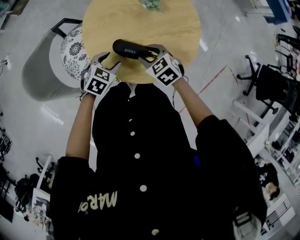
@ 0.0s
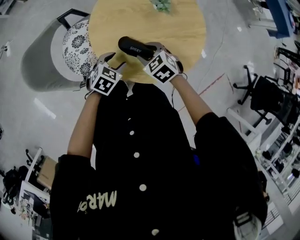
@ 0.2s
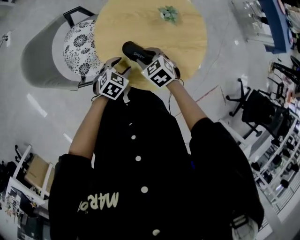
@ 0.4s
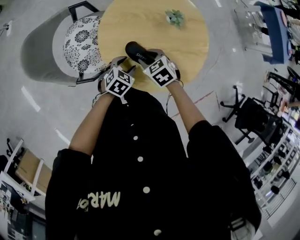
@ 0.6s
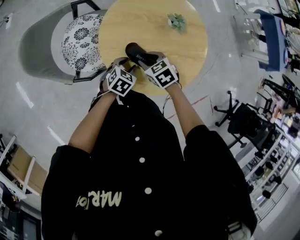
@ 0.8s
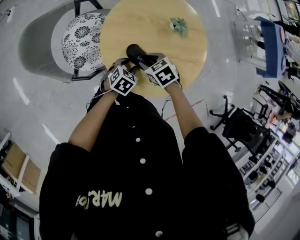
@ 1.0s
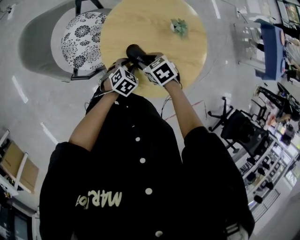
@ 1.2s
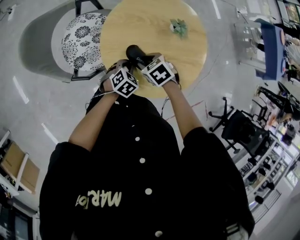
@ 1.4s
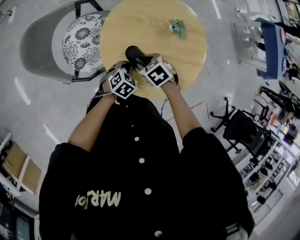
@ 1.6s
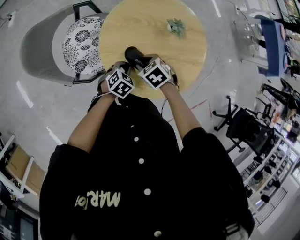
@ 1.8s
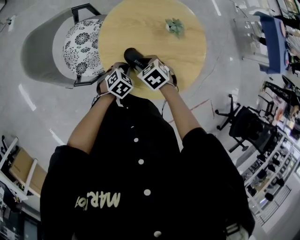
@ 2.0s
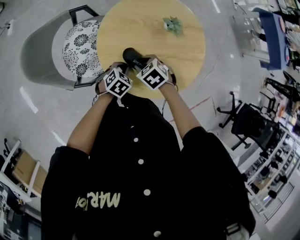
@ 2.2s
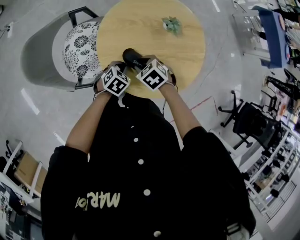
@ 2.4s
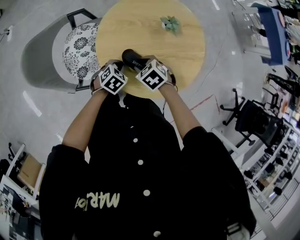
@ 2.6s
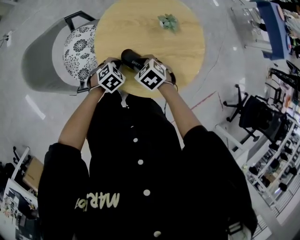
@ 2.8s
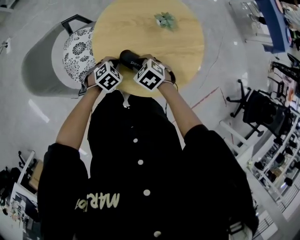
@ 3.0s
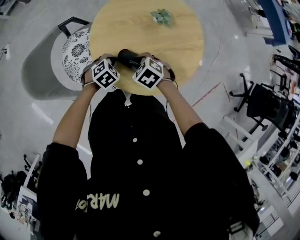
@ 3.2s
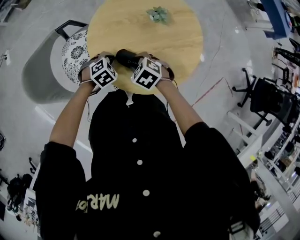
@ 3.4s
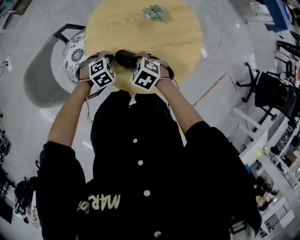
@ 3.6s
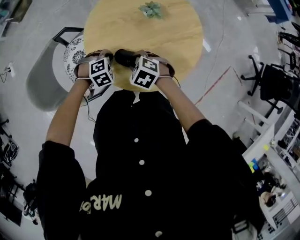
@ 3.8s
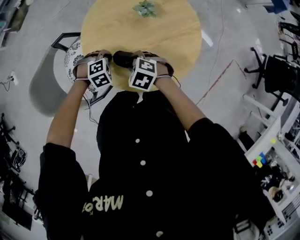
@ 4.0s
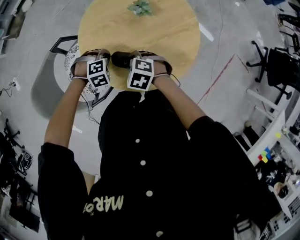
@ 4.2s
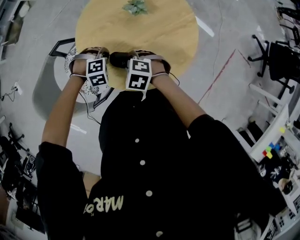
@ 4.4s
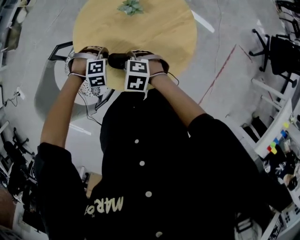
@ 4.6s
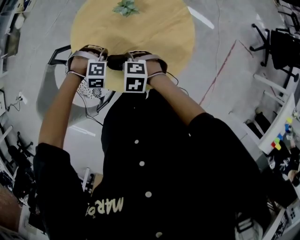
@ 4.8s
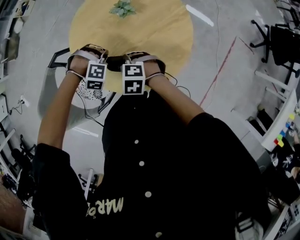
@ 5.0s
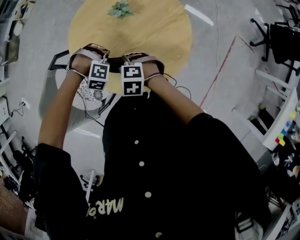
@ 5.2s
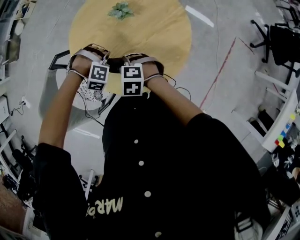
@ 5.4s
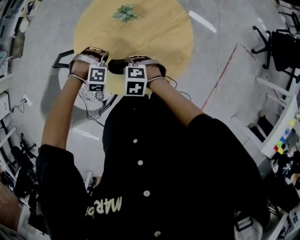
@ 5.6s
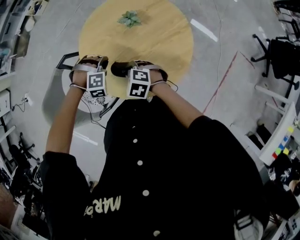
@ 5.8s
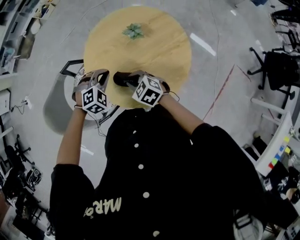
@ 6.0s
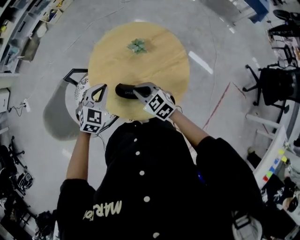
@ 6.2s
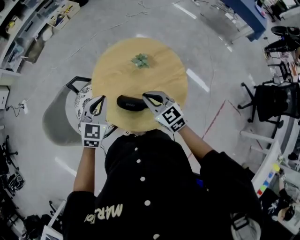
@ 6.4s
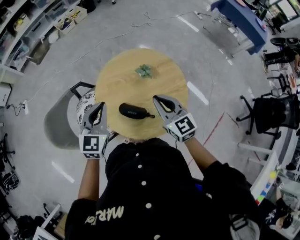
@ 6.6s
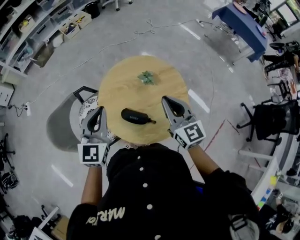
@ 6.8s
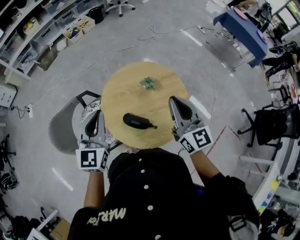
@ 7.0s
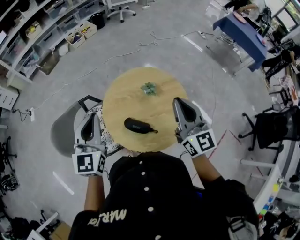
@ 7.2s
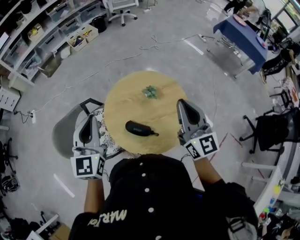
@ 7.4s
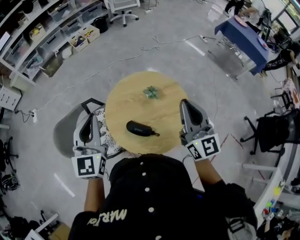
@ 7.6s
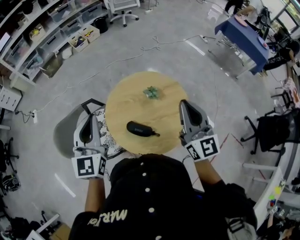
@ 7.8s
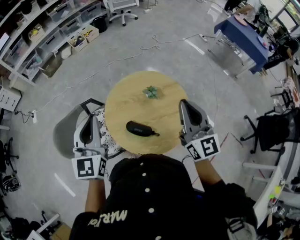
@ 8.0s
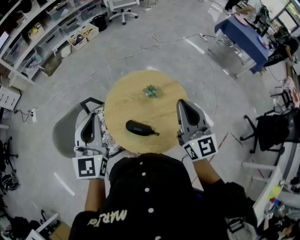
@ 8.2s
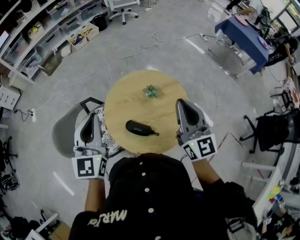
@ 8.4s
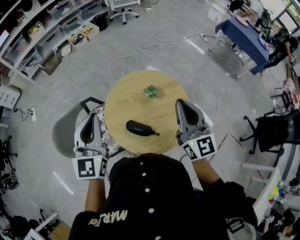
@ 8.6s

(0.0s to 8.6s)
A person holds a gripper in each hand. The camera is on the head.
0.0s - 1.4s: The left gripper heads downward, covering some 5 cm, and closes up. The right gripper ends up approximately 10 cm from where it was, and swivels some 20 degrees.
1.4s - 2.8s: The grippers stay close to where they were, moving slightly.
2.8s - 4.4s: The left gripper ends up some 5 cm from where it was, and twists roughly 60 degrees clockwise, seen from behind.
4.4s - 5.8s: The left gripper changes place by roughly 5 cm.
5.8s - 7.2s: Both grippers travel together upward, roughly 40 cm. The right gripper points its fingers about 60 degrees further upward; the left gripper points its fingers approximately 60 degrees further upward.
7.2s - 8.6s: The grippers stay close to where they were, moving slightly.

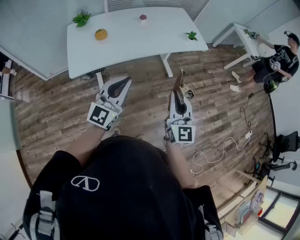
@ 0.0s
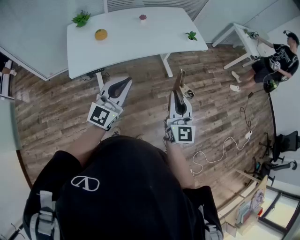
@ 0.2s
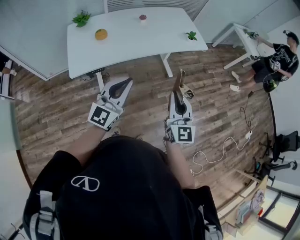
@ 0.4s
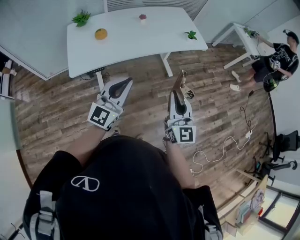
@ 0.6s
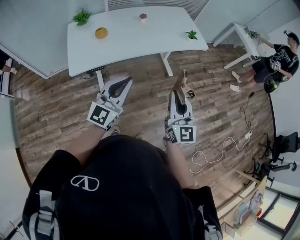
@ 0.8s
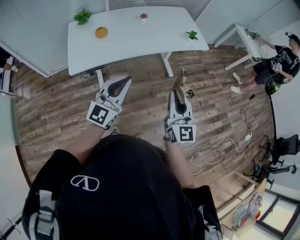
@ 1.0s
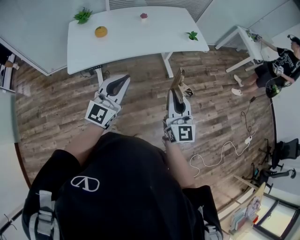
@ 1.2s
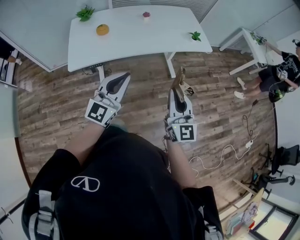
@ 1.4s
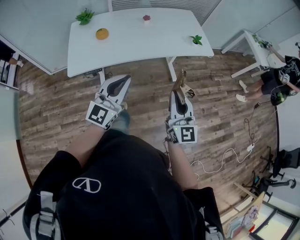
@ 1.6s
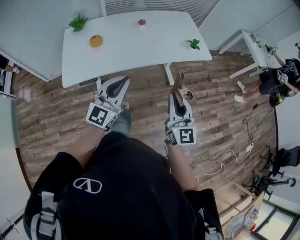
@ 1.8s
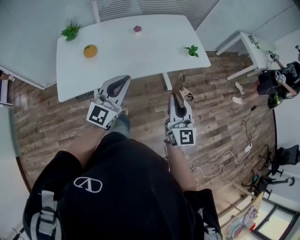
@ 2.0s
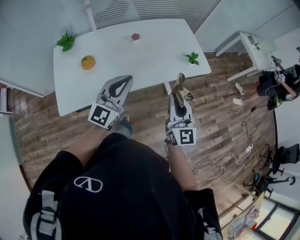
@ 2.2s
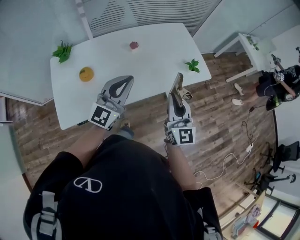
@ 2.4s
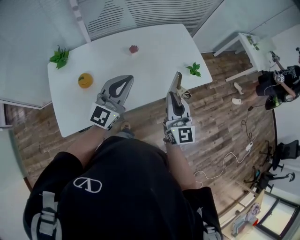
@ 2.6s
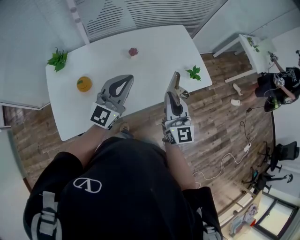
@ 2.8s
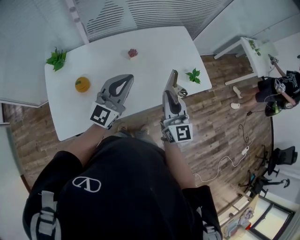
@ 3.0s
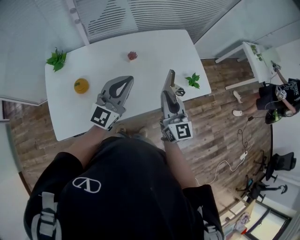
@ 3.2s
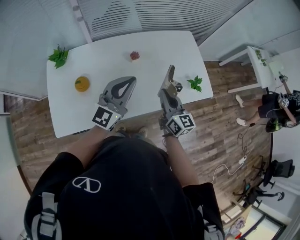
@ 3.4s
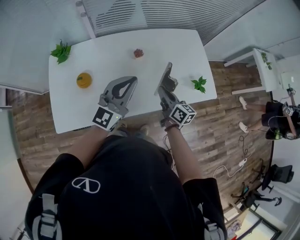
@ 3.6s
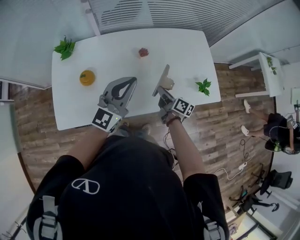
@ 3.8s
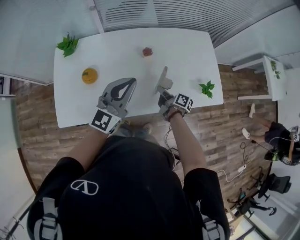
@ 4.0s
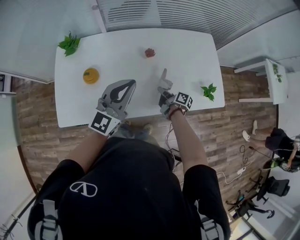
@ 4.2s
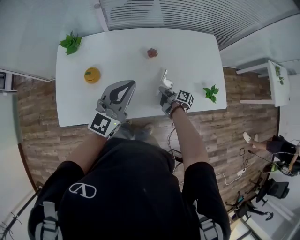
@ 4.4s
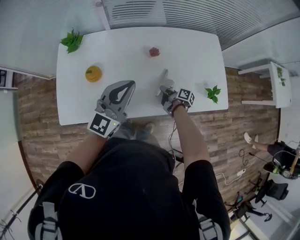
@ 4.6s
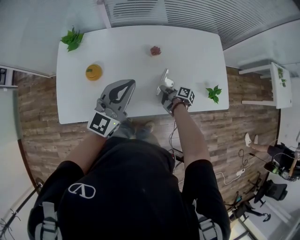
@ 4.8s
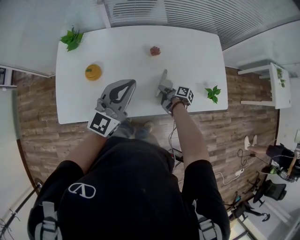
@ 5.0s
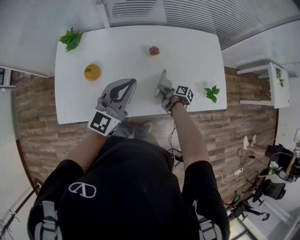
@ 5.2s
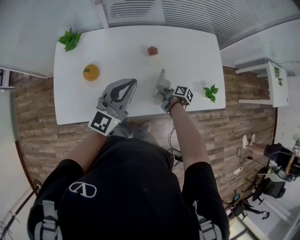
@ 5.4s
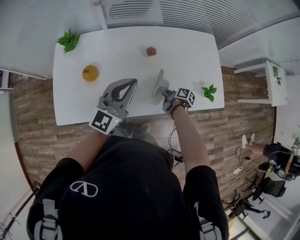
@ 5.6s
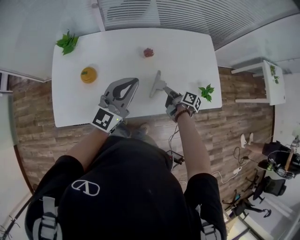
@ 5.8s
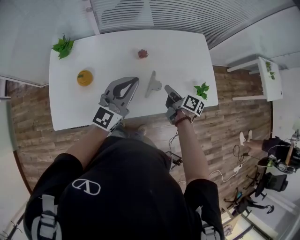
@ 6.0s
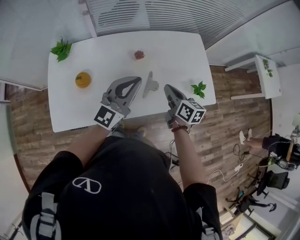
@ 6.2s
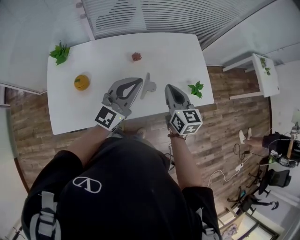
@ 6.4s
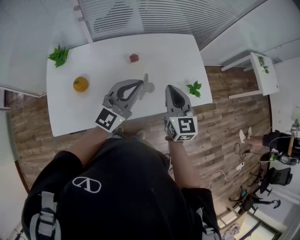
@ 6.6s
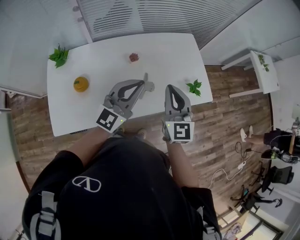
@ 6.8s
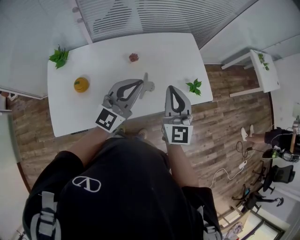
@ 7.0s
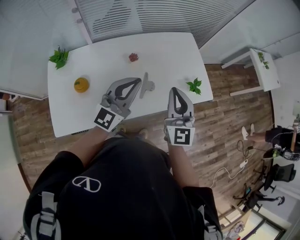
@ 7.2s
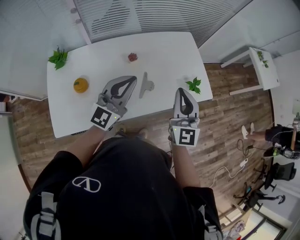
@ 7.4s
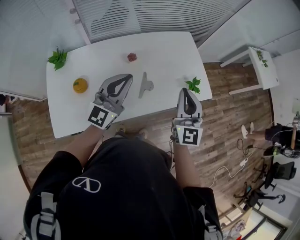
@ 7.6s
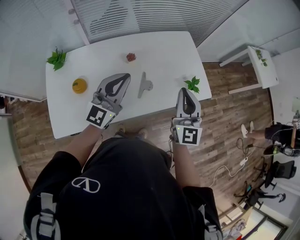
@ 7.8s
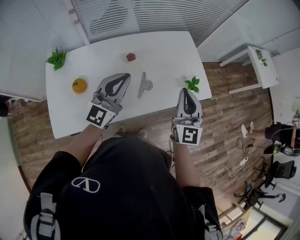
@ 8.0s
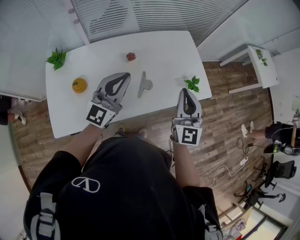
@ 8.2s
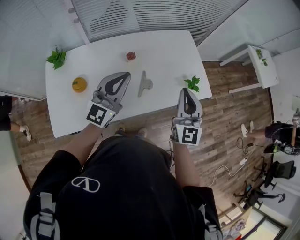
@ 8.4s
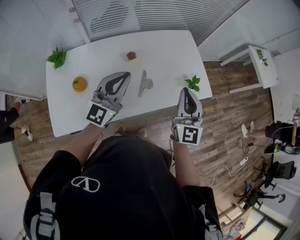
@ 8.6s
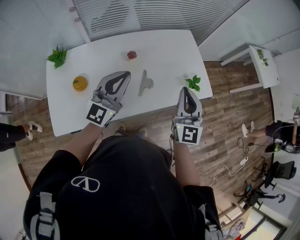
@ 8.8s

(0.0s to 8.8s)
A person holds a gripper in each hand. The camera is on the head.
0.0s - 1.4s: There are only small adjustments of the grippers.
1.4s - 3.0s: The pair of grippers is taken forward, some 40 cm.
3.0s - 4.4s: The right gripper is displaced downward and forward by approximately 35 cm, and rotates around the line of its fingers by roughly 80 degrees, clockwise from behind. The left gripper moves about 5 cm.
4.4s - 5.8s: The right gripper is displaced upward by roughly 5 cm, and opens, then closes once more.
5.8s - 7.4s: The left gripper heads to the right, covering approximately 5 cm. Meanwhile the right gripper is displaced upward by roughly 30 cm, and rotates around the line of its fingers by approximately 80 degrees, counterclockwise from behind.
7.4s - 8.8s: The grippers make only small movements.

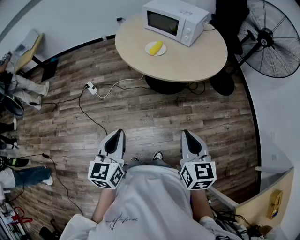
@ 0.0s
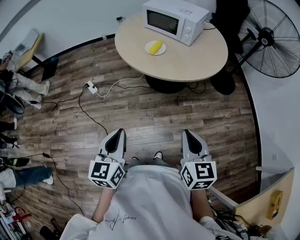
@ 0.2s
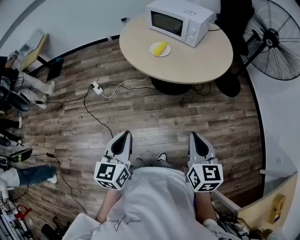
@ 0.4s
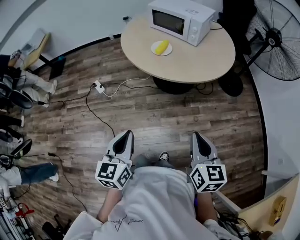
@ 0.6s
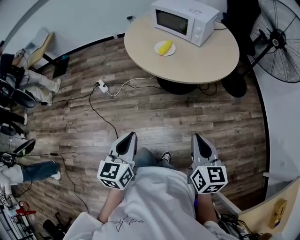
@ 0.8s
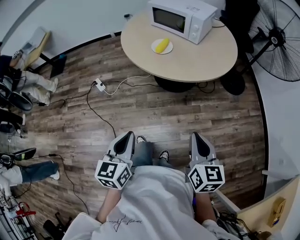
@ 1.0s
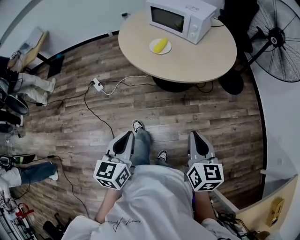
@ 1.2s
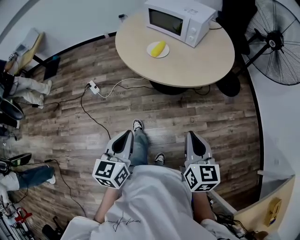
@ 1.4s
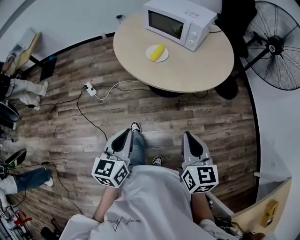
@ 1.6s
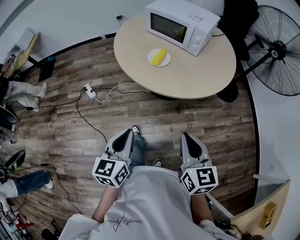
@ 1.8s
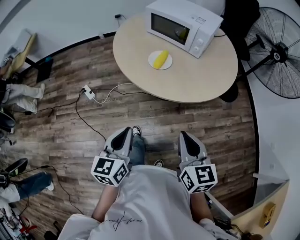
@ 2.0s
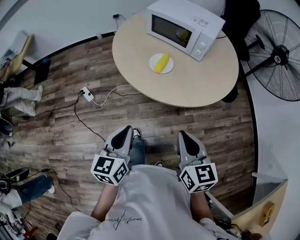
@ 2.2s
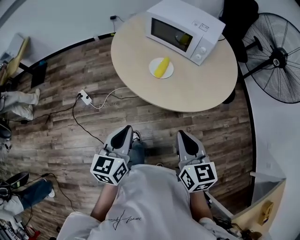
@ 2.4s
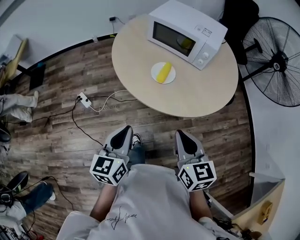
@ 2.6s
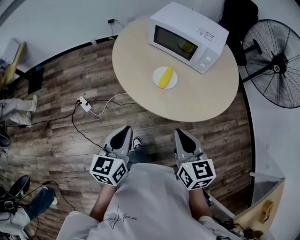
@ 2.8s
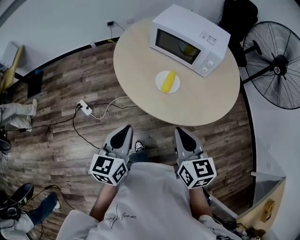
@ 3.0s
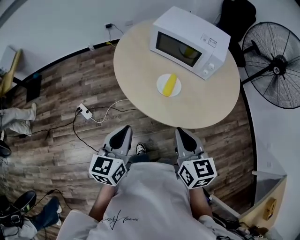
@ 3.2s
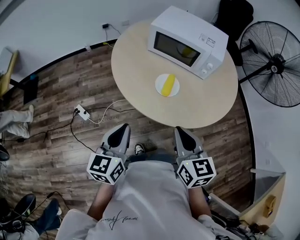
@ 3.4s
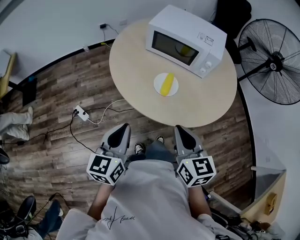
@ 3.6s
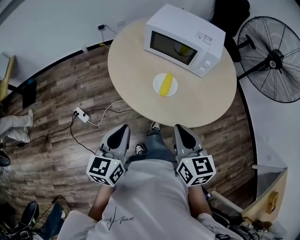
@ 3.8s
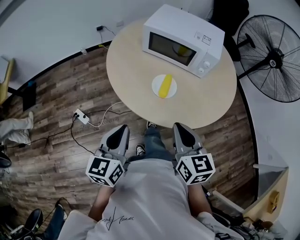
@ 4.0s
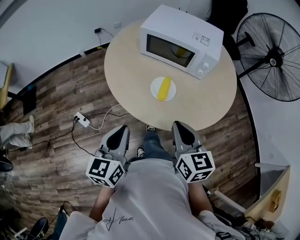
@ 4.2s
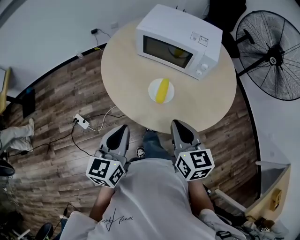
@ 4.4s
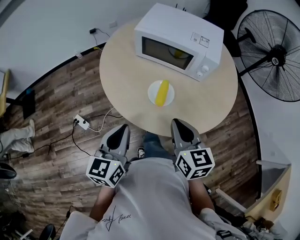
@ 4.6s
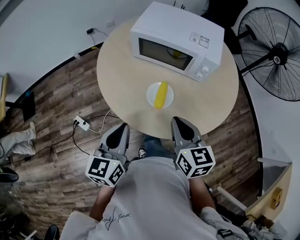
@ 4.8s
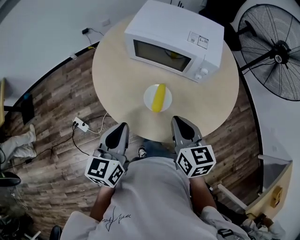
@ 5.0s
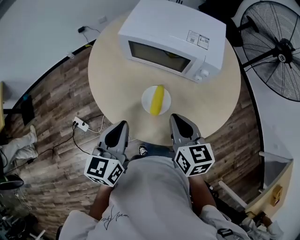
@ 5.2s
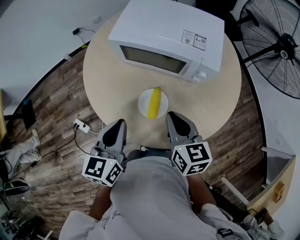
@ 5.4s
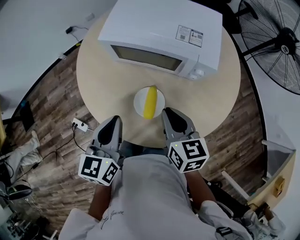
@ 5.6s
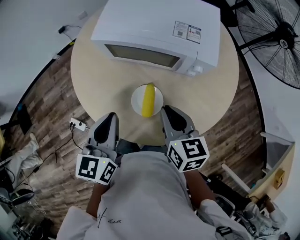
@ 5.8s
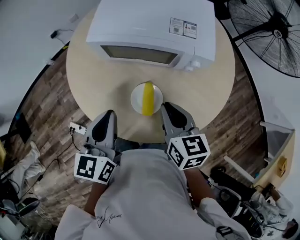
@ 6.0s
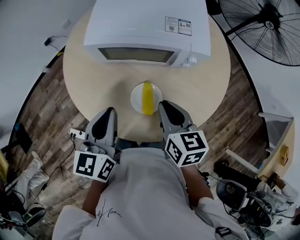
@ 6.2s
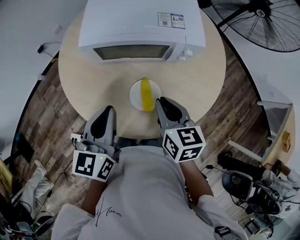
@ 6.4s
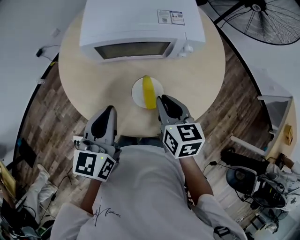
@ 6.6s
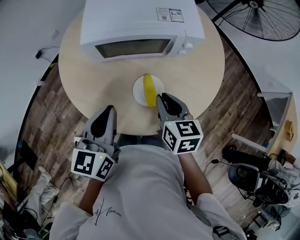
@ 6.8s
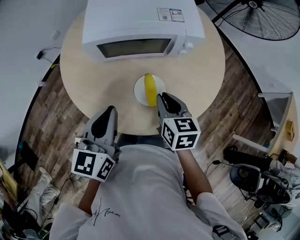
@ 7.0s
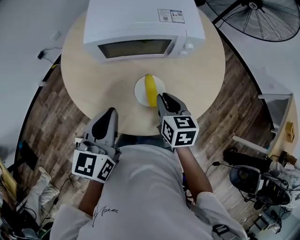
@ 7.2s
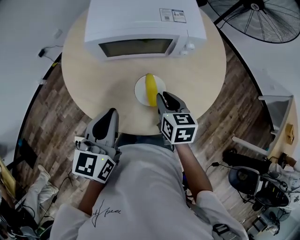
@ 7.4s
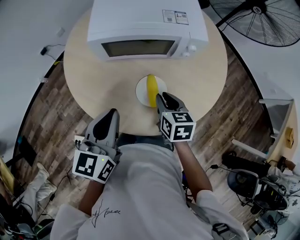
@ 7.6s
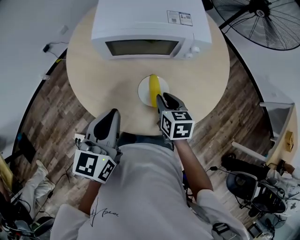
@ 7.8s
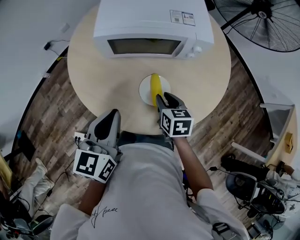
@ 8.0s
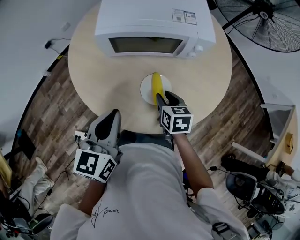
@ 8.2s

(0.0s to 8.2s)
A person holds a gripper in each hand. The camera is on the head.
0.0s - 1.6s: The grippers both shift forward by approximately 10 cm.
1.6s - 3.2s: The two grippers go some 30 cm forward and to the left.
3.2s - 5.0s: The two grippers go some 20 cm forward.
5.0s - 6.6s: The left gripper moves forward, some 15 cm, and changes its angle by approximately 20 degrees, while the right gripper is displaced forward and downward by roughly 10 cm, and swivels approximately 30 degrees.
6.6s - 8.2s: The left gripper shifts by roughly 5 cm. Meanwhile the right gripper travels downward by roughly 10 cm.
